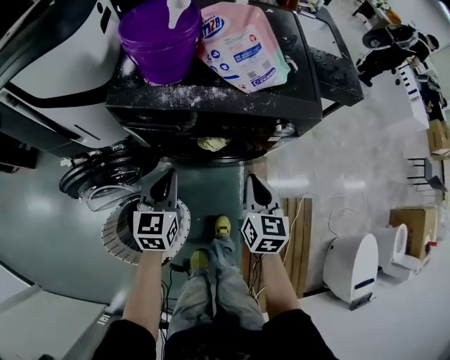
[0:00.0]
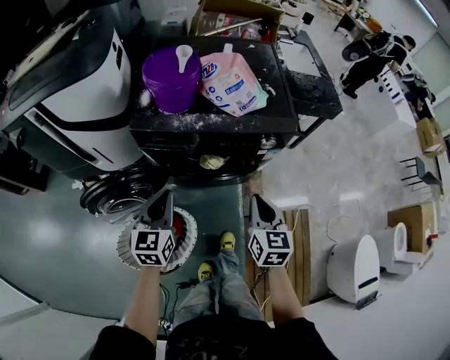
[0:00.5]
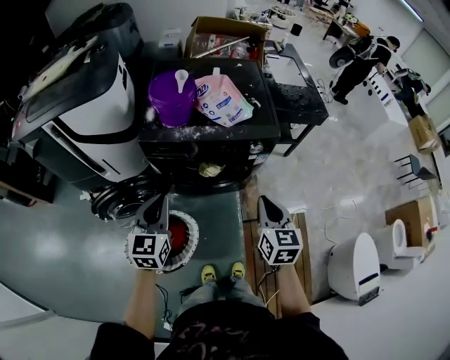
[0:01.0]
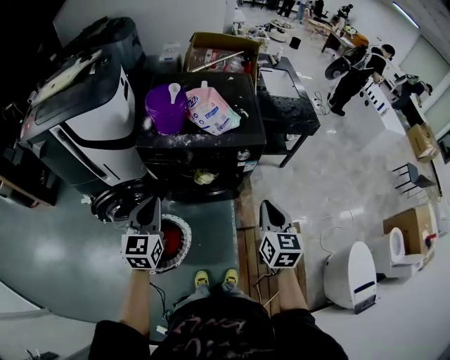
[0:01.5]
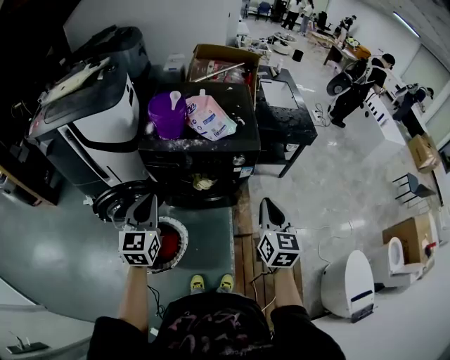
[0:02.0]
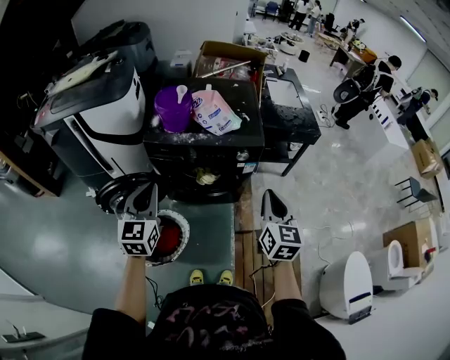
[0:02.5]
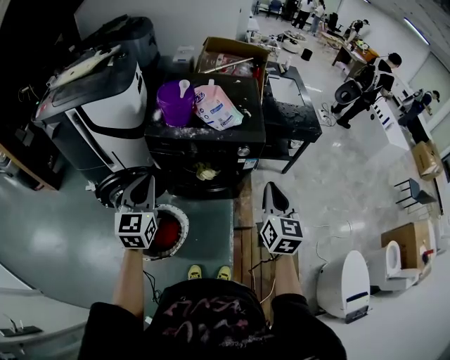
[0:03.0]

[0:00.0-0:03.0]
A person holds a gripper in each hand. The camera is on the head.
0:00.0 to 0:01.5: The left gripper is displaced upward and backward by approximately 30 cm, while the right gripper heads upward, backward and to the right, covering about 30 cm.
0:01.5 to 0:03.0: The grippers both shift upward by roughly 5 cm.
